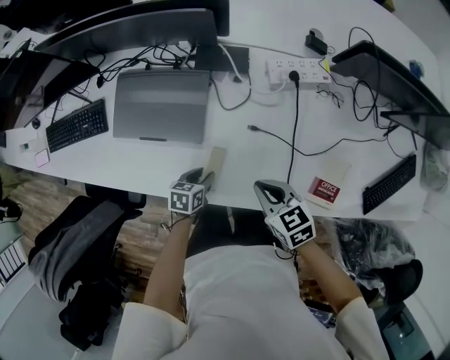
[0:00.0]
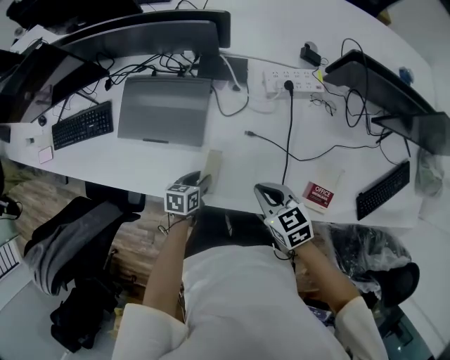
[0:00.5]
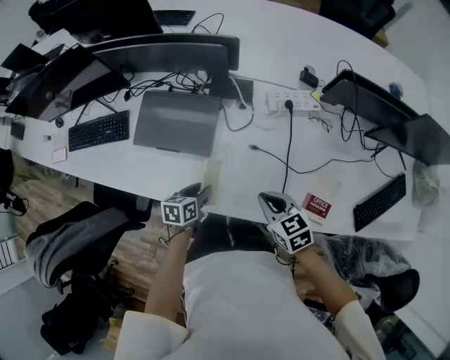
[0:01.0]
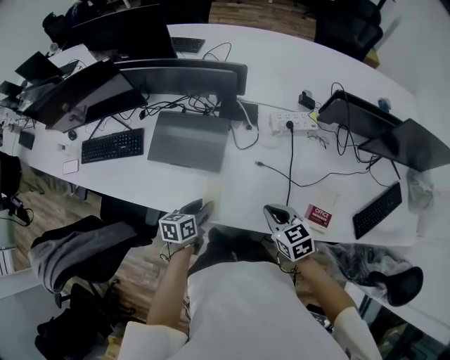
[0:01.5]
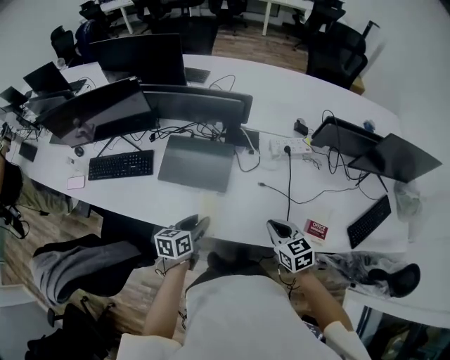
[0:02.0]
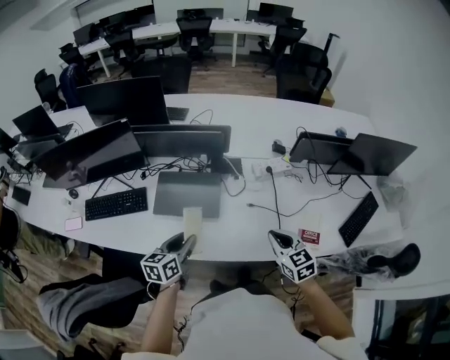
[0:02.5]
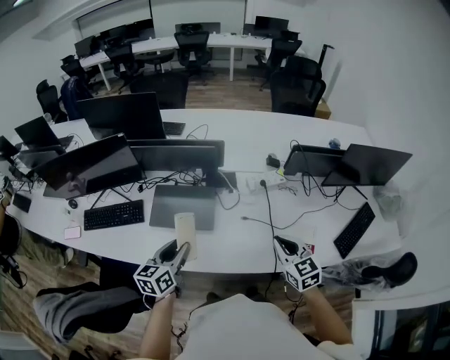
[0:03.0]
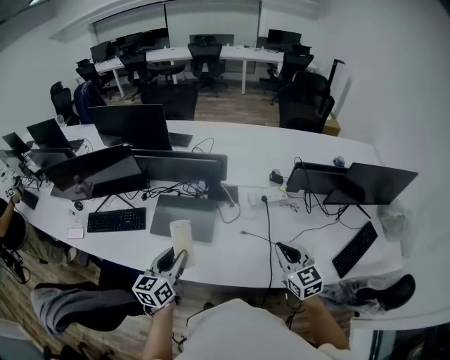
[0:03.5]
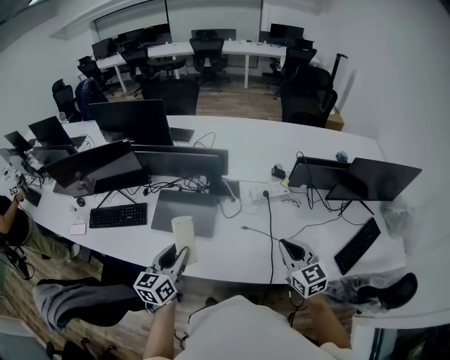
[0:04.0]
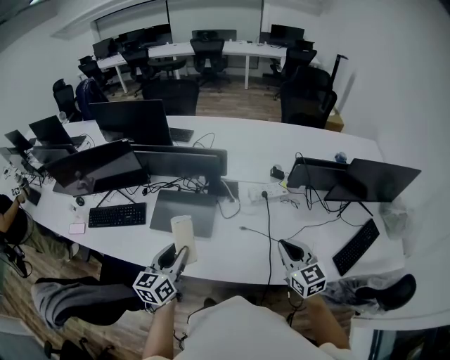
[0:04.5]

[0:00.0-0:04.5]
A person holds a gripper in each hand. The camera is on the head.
0:00.0 to 0:02.0: The left gripper moves upward and to the left, approximately 25 cm, and changes its angle by roughly 30 degrees. Meanwhile the right gripper moves upward and backward, approximately 15 cm.
0:02.0 to 0:04.5: The right gripper travels upward and to the right by some 20 cm, and turns by approximately 20 degrees, while the left gripper moves upward, approximately 20 cm, and swivels roughly 30 degrees.

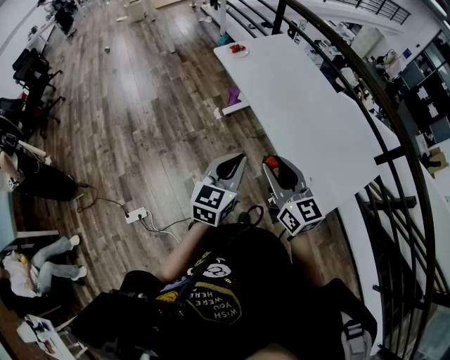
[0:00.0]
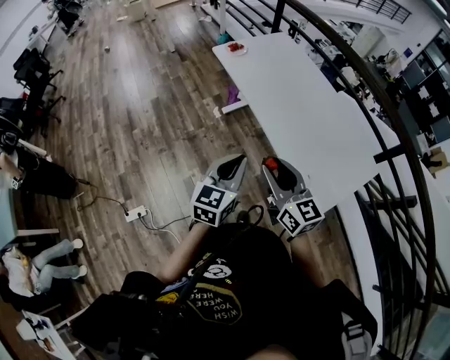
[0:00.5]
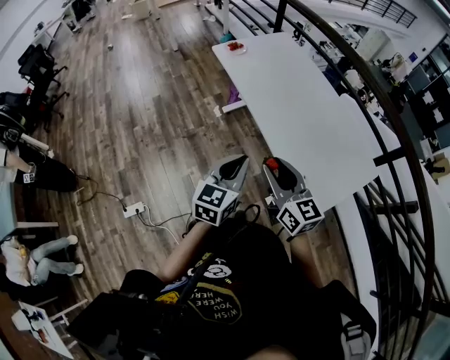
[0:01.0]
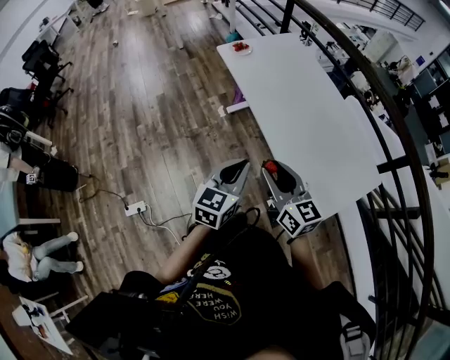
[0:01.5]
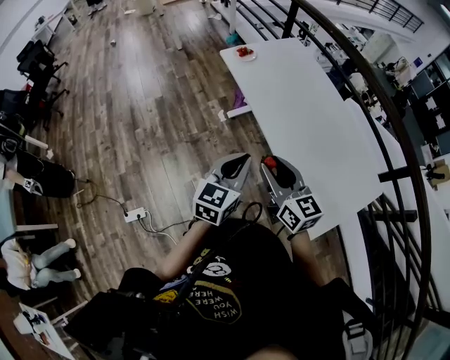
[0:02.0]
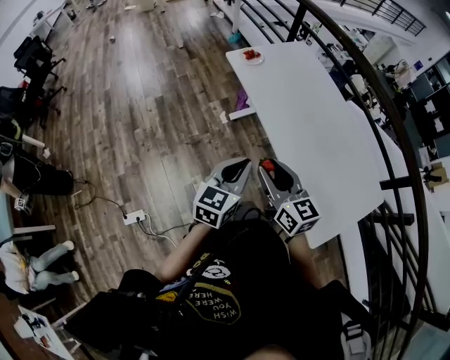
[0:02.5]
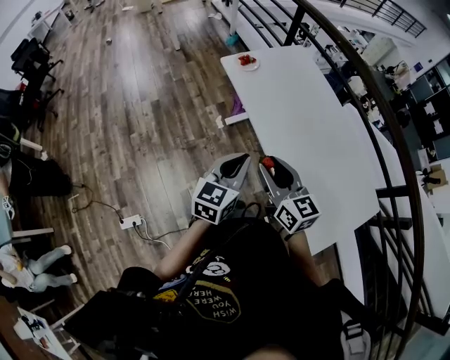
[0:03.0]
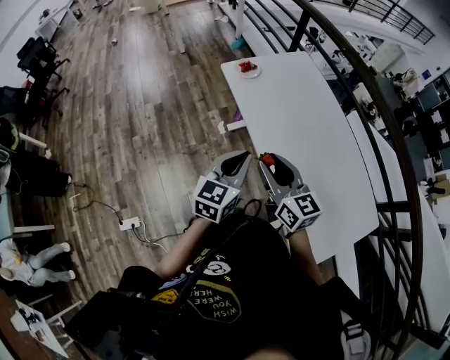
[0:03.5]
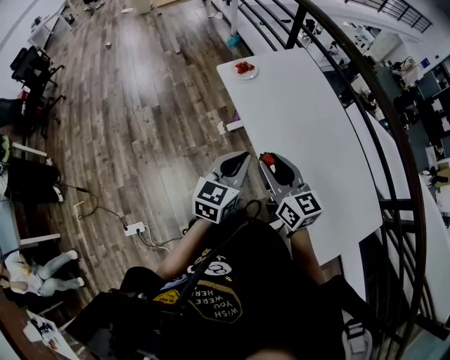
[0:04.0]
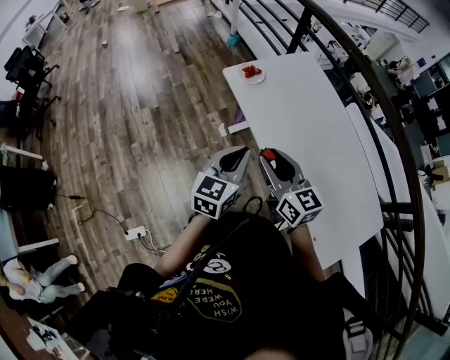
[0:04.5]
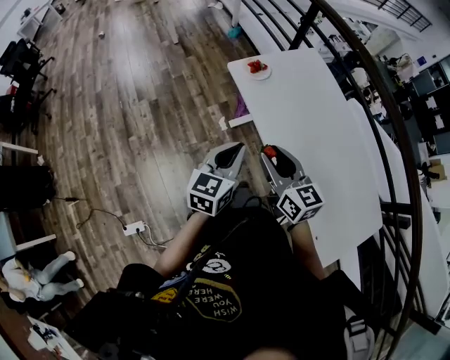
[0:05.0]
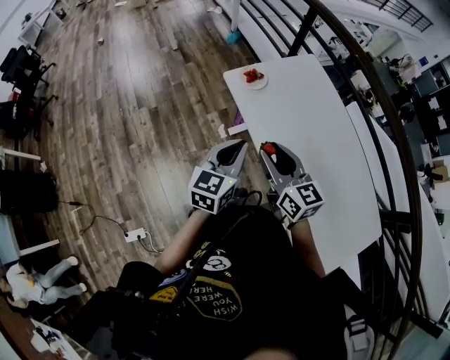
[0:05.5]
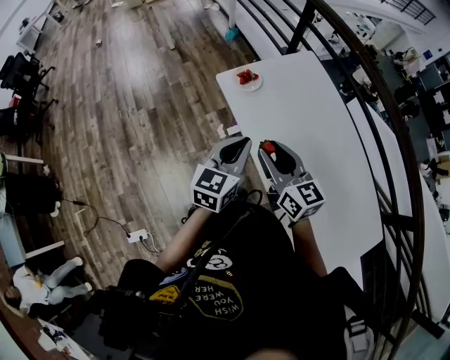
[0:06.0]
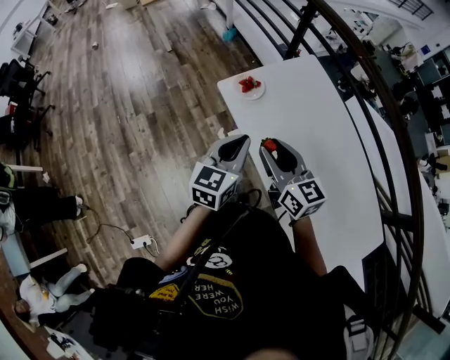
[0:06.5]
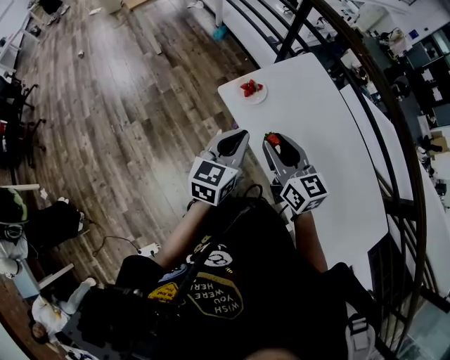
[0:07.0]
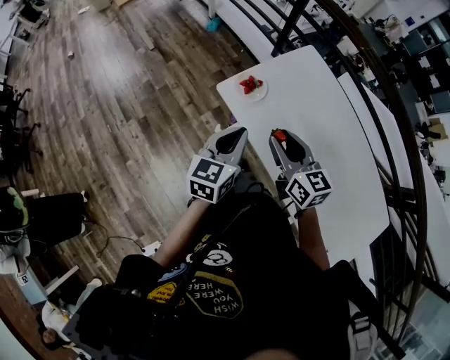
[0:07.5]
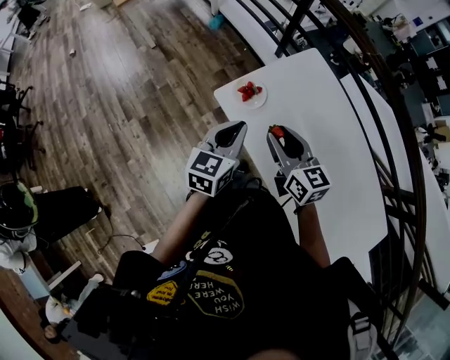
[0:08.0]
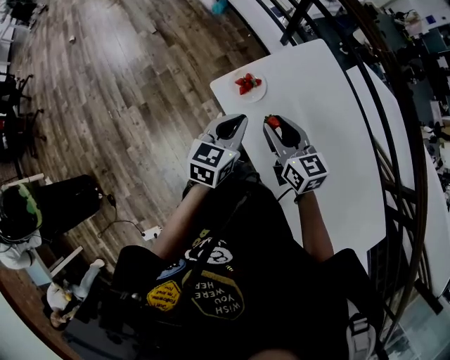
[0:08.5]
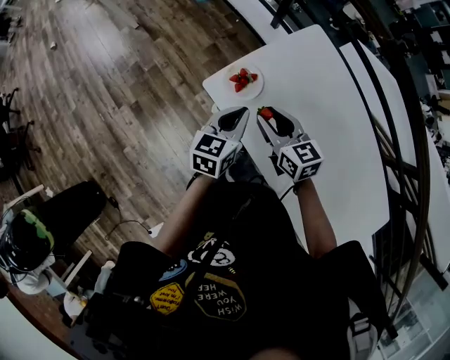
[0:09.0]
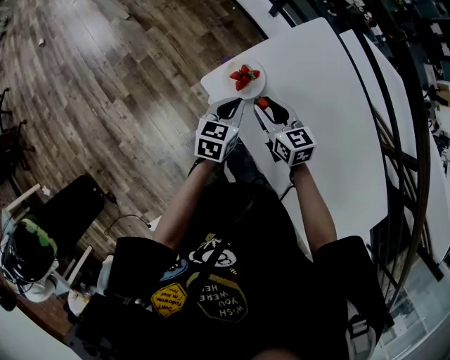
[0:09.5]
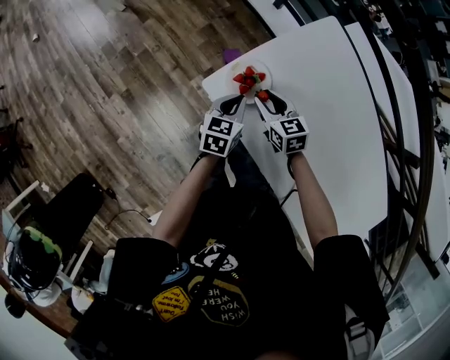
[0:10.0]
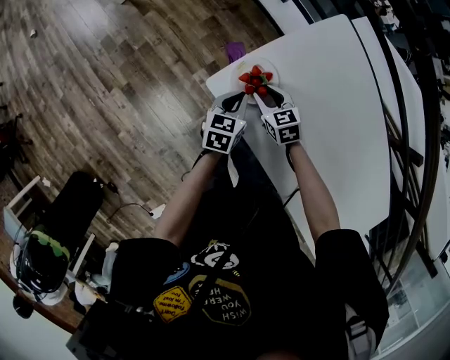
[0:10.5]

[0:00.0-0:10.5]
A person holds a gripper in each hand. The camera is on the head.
0:00.0 to 0:02.0: The two grippers go approximately 10 cm forward.
0:02.0 to 0:04.0: Both grippers move forward, about 20 cm.
0:04.0 to 0:06.5: Both grippers move forward, some 25 cm.
0:06.5 to 0:08.5: The two grippers go roughly 20 cm forward and downward.
0:08.5 to 0:10.5: Both grippers move downward and forward, some 30 cm. The right gripper swivels approximately 30 degrees.

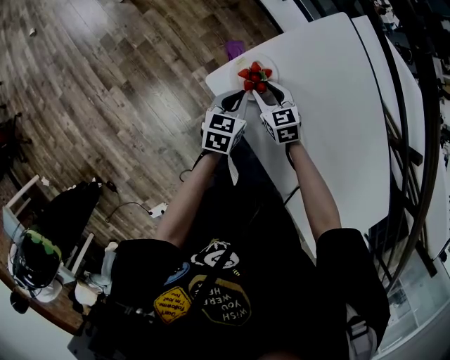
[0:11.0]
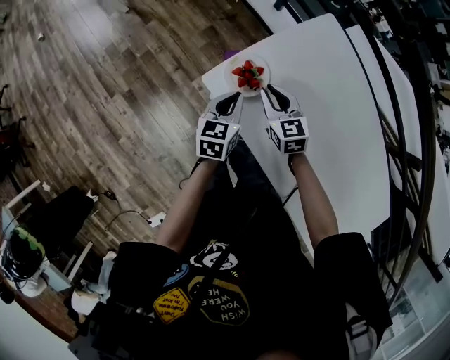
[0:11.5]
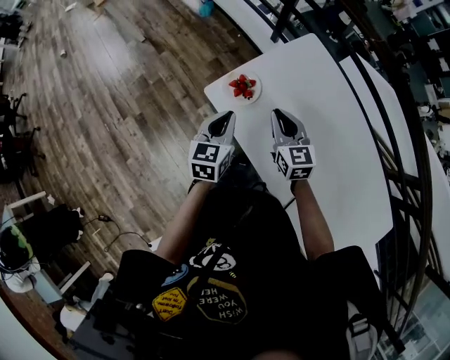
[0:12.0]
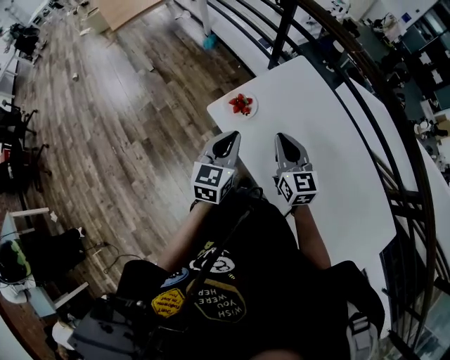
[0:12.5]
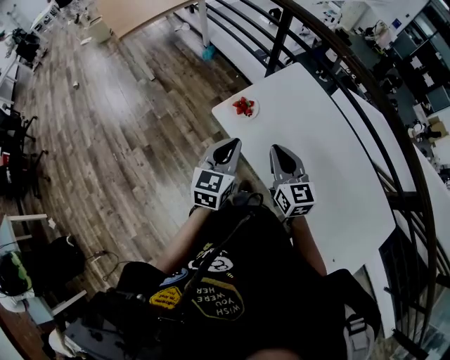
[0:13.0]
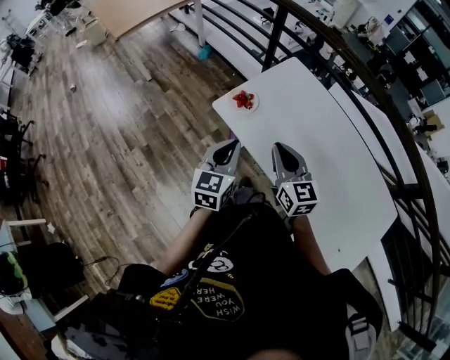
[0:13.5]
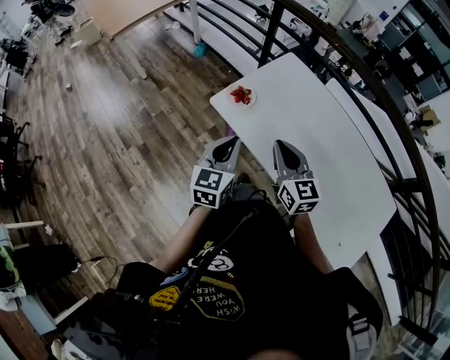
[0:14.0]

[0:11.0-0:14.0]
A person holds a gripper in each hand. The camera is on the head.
0:11.0 to 0:12.5: Both grippers move upward and backward, about 30 cm. The left gripper swivels some 30 degrees. The right gripper angles its fingers upward, by approximately 30 degrees, and closes its fingers.
0:12.5 to 0:14.0: The two grippers go roughly 10 cm backward.

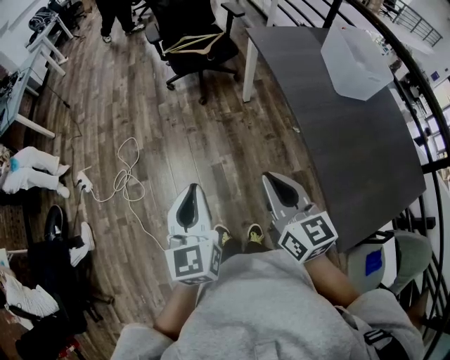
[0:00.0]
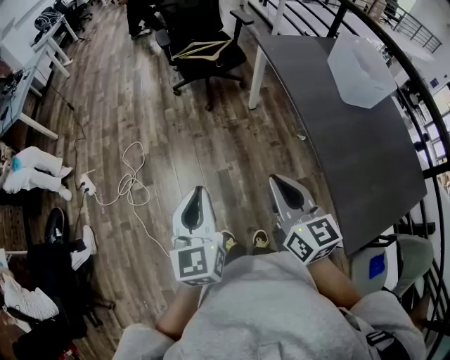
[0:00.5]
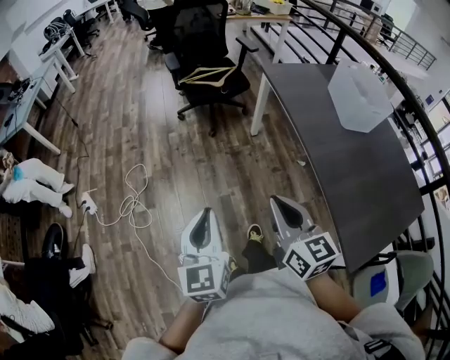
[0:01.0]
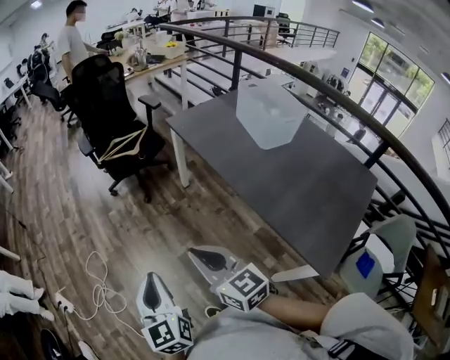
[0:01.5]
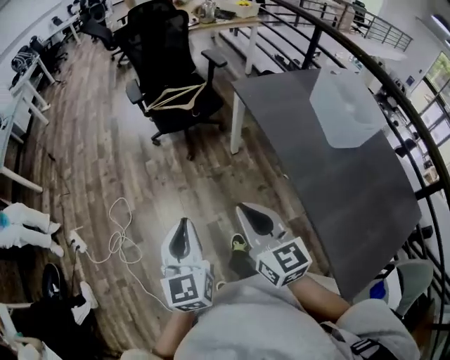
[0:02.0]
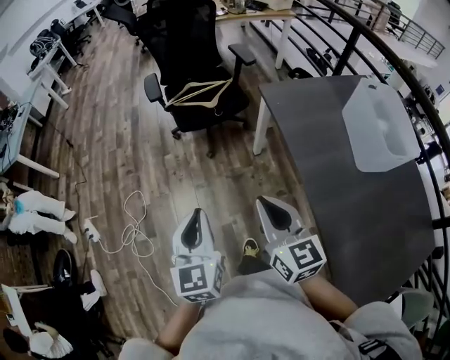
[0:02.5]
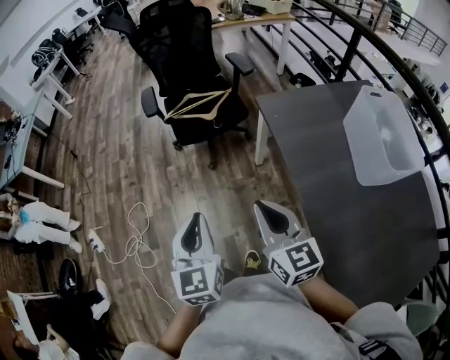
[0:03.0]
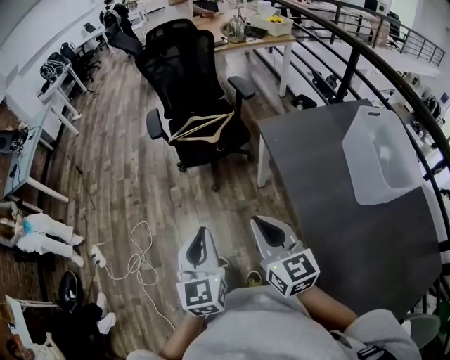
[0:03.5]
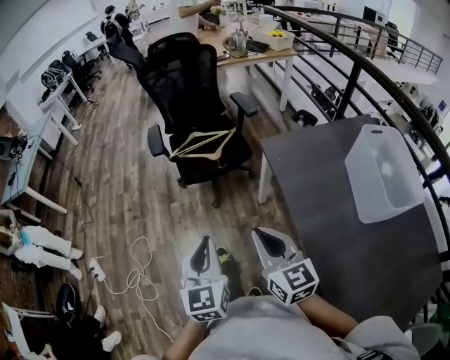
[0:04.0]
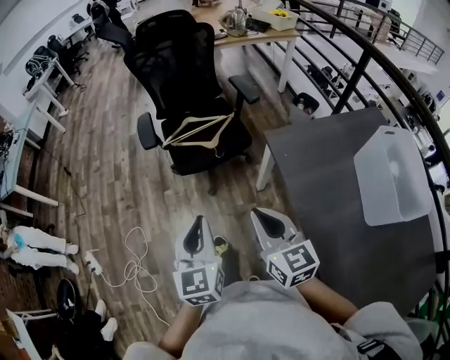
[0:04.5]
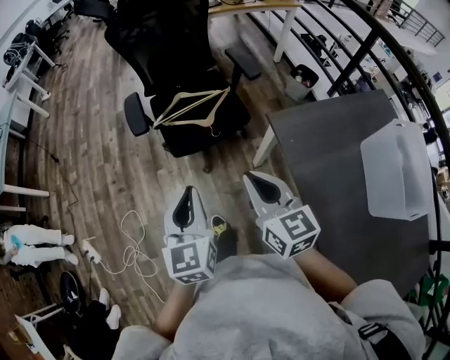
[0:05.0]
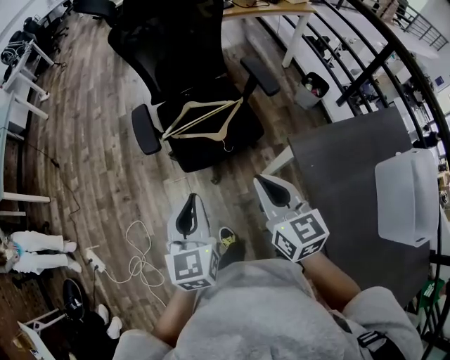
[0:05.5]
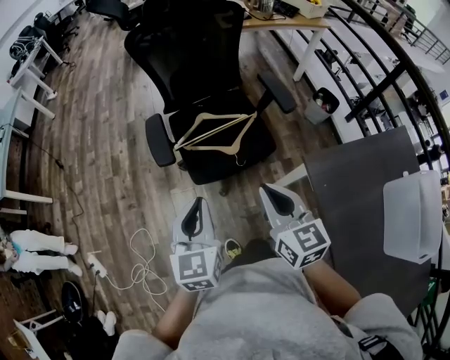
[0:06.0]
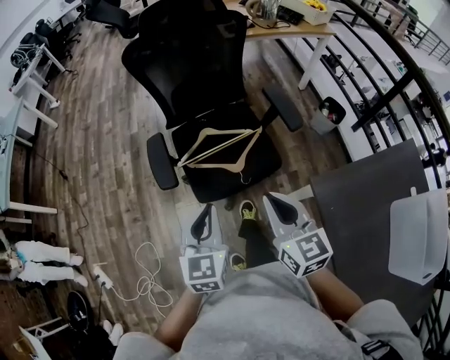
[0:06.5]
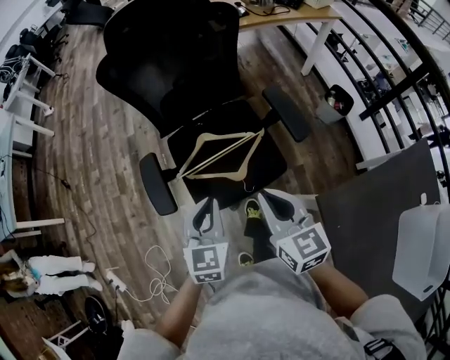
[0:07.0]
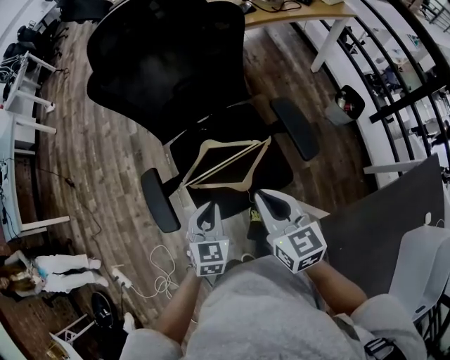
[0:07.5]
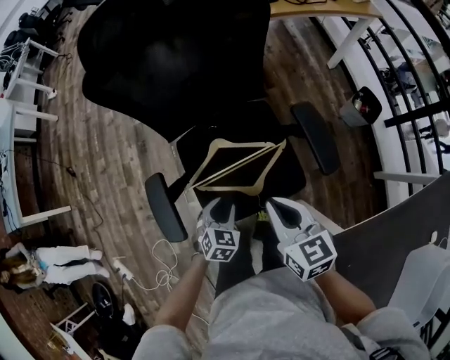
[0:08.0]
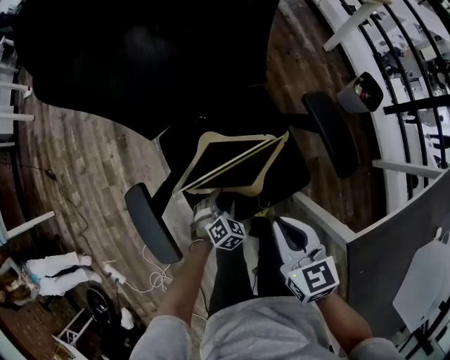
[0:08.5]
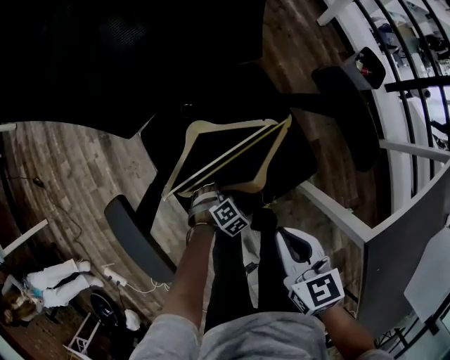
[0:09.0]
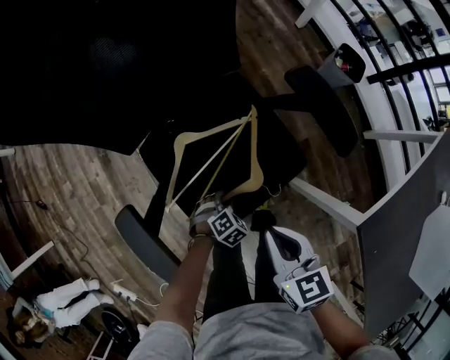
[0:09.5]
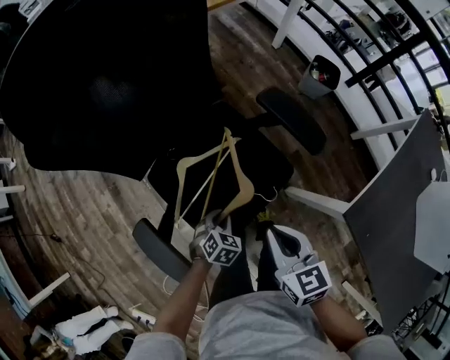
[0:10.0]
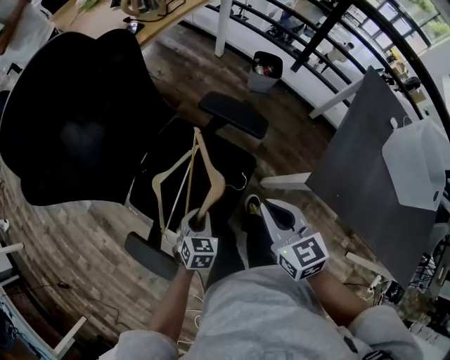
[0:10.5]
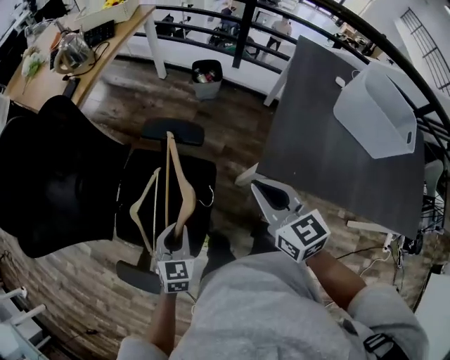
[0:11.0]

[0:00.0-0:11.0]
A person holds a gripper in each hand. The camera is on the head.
0:00.0 to 0:02.0: Both grippers travel together forward, approximately 20 cm.
0:02.0 to 0:03.5: The two grippers go roughly 25 cm forward and to the right.
0:03.5 to 0:05.5: The two grippers go approximately 40 cm forward.
0:05.5 to 0:07.5: The right gripper moves forward, roughly 35 cm; the left gripper moves forward and downward, some 35 cm, and changes its angle by approximately 30 degrees.
0:07.5 to 0:09.0: The right gripper moves downward, about 20 cm, and turns by some 20 degrees. Meanwhile the left gripper heads downward, covering about 40 cm, points its fingers some 40 degrees further downward, and opens.
0:09.0 to 0:11.0: The right gripper heads upward, covering roughly 25 cm, and rotates roughly 40 degrees. Meanwhile the left gripper moves upward, approximately 40 cm, and tips its fingers upward by approximately 40 degrees.
